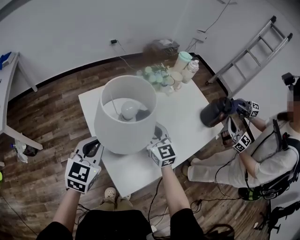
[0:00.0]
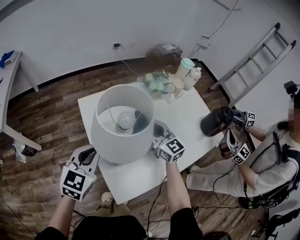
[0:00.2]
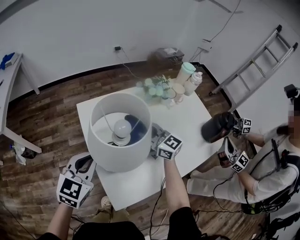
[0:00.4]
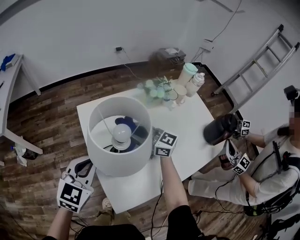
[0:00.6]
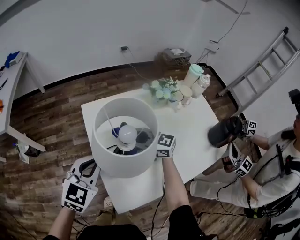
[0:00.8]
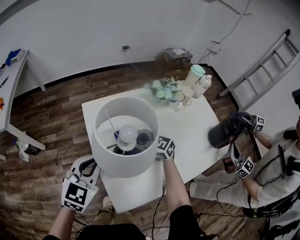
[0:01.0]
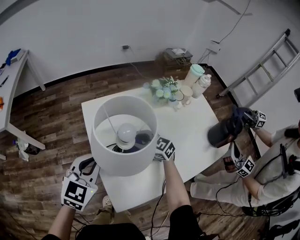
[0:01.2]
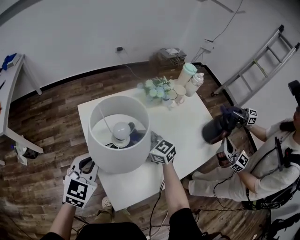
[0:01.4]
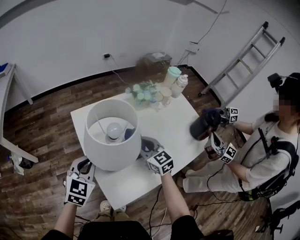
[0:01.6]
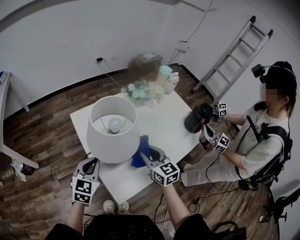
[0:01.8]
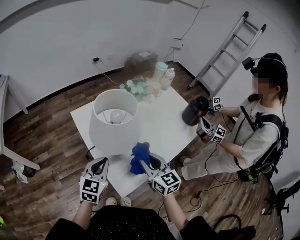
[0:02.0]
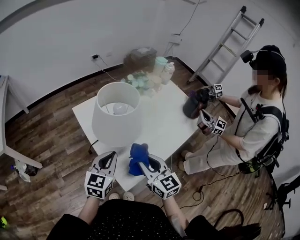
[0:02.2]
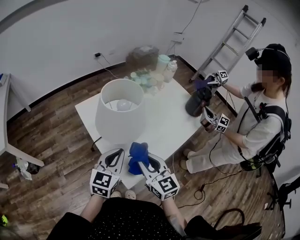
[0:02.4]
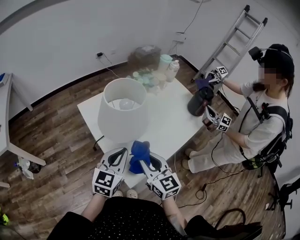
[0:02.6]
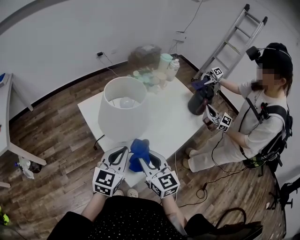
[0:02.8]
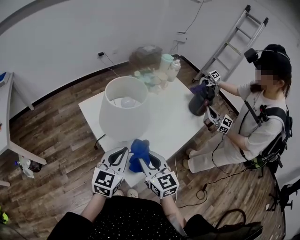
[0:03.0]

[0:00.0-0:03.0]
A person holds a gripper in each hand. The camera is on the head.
0:00.0 to 0:01.6: The right gripper goes downward and returns, about 10 cm each way.
0:01.6 to 0:03.0: The left gripper is displaced backward and to the right by approximately 10 cm, and changes its angle by approximately 20 degrees, while the right gripper heads backward, covering roughly 20 cm, and swivels some 20 degrees.

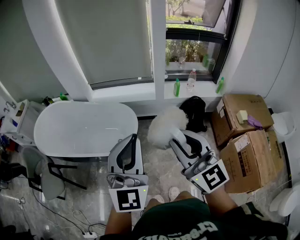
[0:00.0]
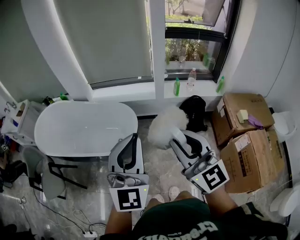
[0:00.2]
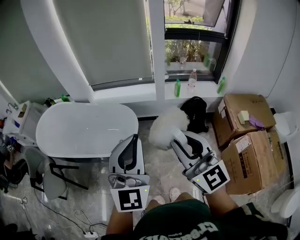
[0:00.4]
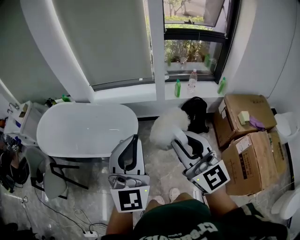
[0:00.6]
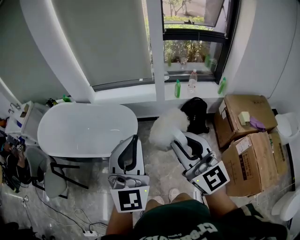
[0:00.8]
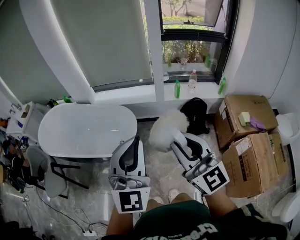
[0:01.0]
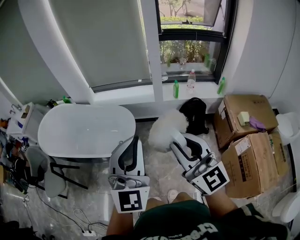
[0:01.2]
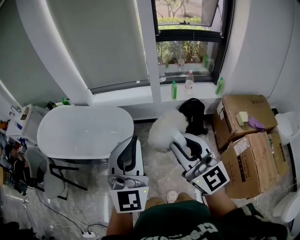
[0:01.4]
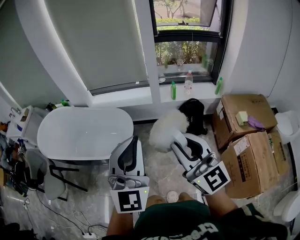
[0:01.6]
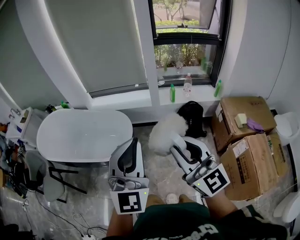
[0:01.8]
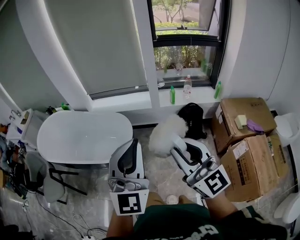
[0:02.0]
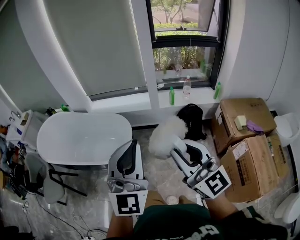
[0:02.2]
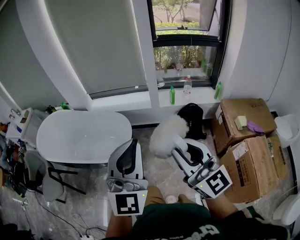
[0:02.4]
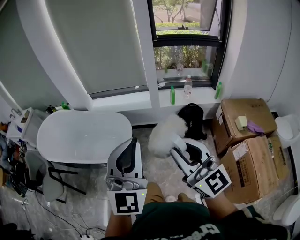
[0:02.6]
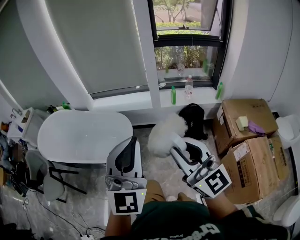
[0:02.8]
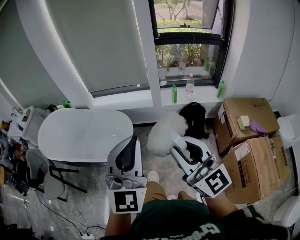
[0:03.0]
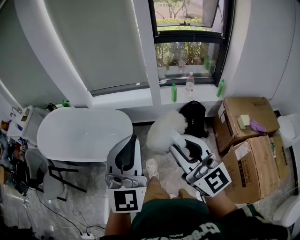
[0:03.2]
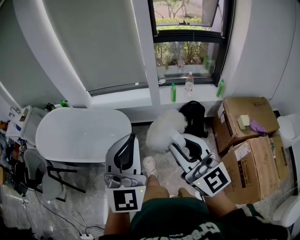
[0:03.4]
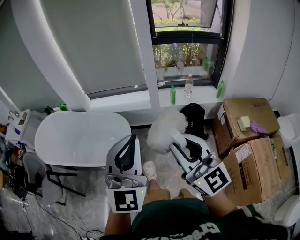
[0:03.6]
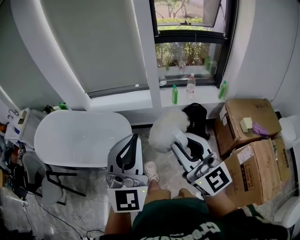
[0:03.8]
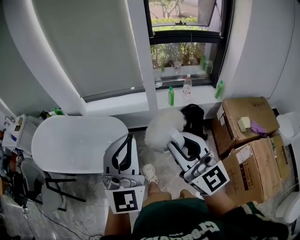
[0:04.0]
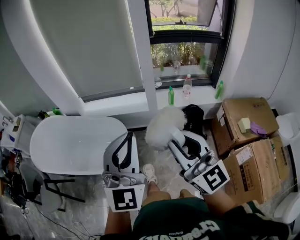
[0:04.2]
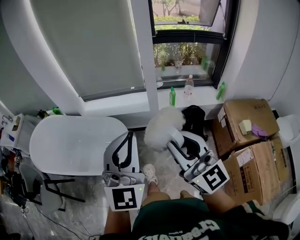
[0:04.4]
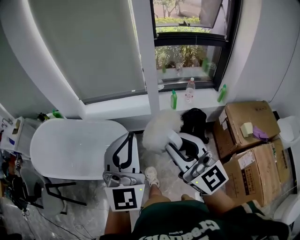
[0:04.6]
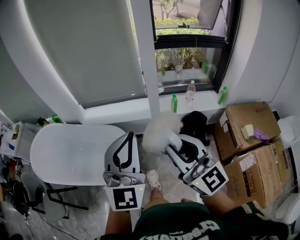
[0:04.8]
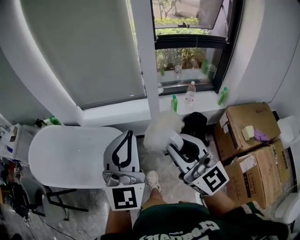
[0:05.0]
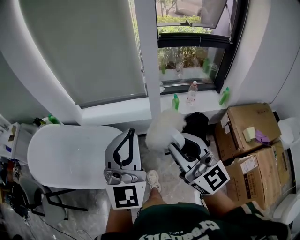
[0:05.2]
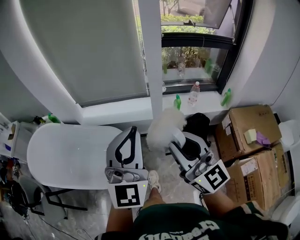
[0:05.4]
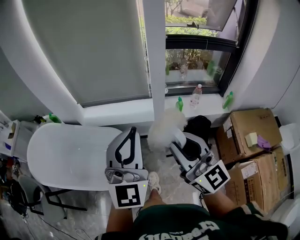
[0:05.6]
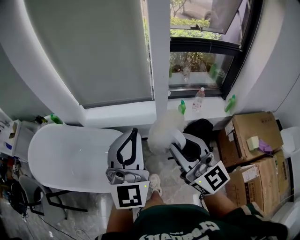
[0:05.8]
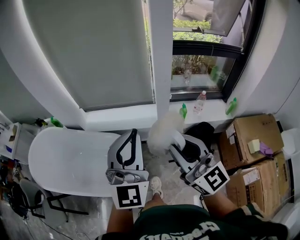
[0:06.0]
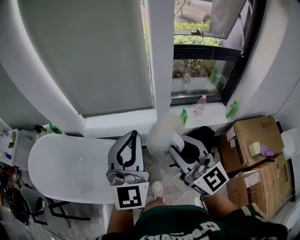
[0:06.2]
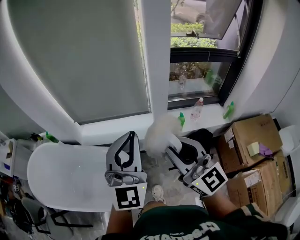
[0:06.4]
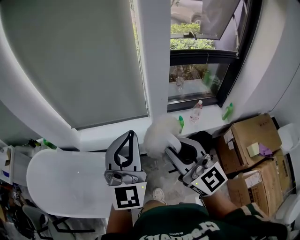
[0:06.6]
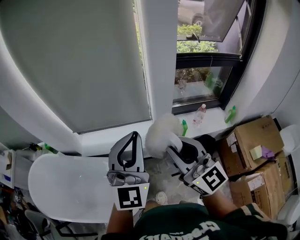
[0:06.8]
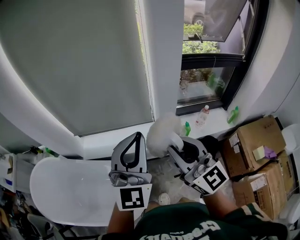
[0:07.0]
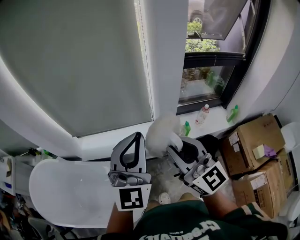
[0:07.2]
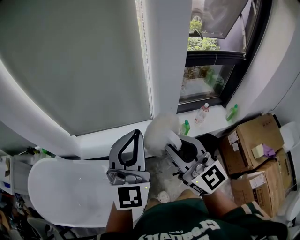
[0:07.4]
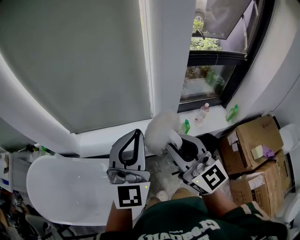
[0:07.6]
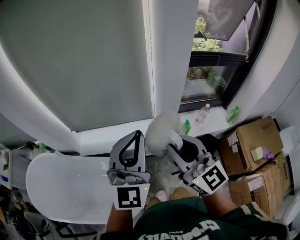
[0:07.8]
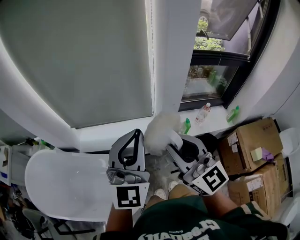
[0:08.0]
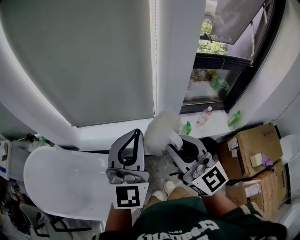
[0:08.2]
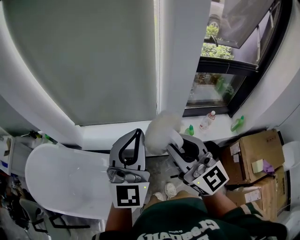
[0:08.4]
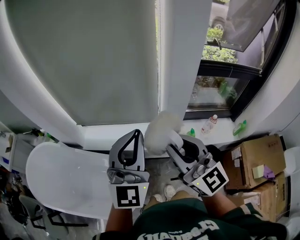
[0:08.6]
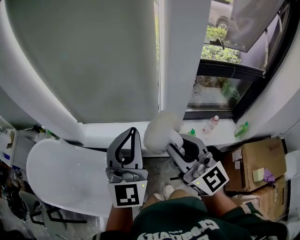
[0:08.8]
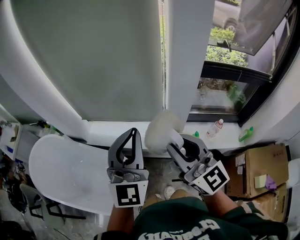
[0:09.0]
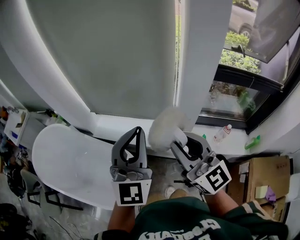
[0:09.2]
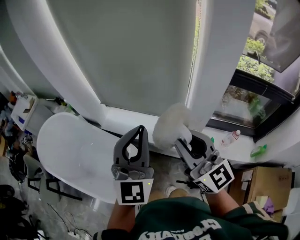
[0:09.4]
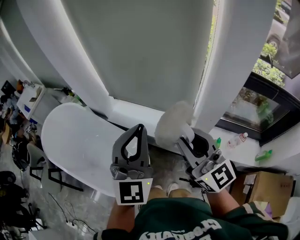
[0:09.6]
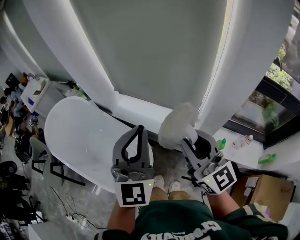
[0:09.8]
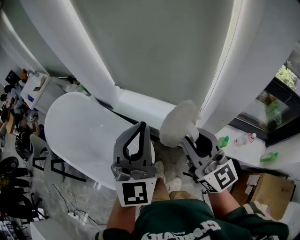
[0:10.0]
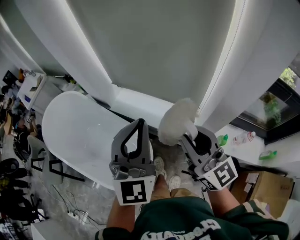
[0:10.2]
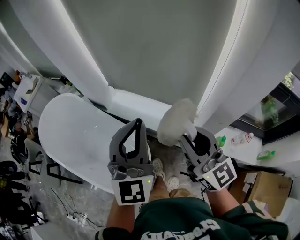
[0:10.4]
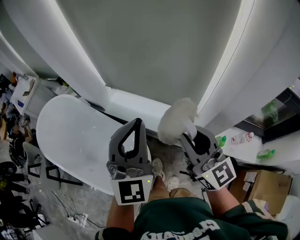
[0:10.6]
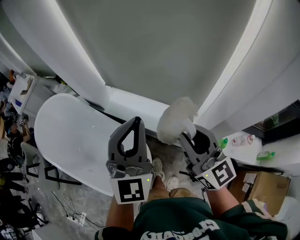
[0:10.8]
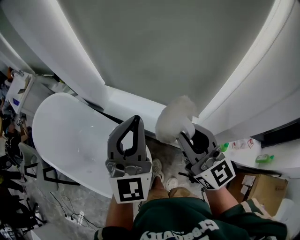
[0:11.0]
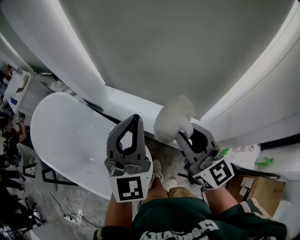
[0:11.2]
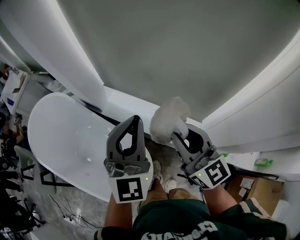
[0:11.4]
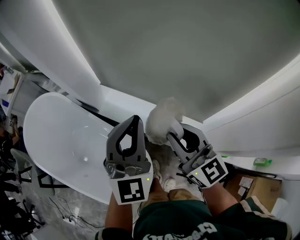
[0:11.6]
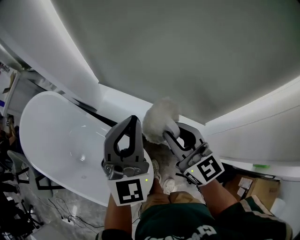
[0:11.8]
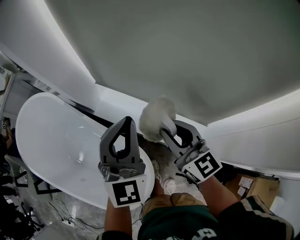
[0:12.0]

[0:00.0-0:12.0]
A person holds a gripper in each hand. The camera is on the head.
0:00.0 to 0:01.6: The two grippers go approximately 10 cm to the right.
0:01.6 to 0:03.0: The grippers move only a little.
0:03.0 to 0:04.4: The two grippers go about 15 cm forward.
0:04.4 to 0:06.0: Both grippers move forward, roughly 20 cm.
0:06.0 to 0:07.6: The two grippers go about 20 cm forward.
0:07.6 to 0:09.0: The right gripper ends up approximately 5 cm from where it was.
0:09.0 to 0:10.4: The left gripper is displaced to the left and forward by roughly 10 cm, while the right gripper shifts about 10 cm forward, downward and to the left.
0:10.4 to 0:12.0: The right gripper shifts about 30 cm forward, downward and to the left, while the left gripper travels forward and downward by some 30 cm.

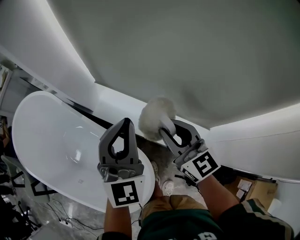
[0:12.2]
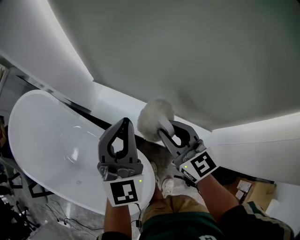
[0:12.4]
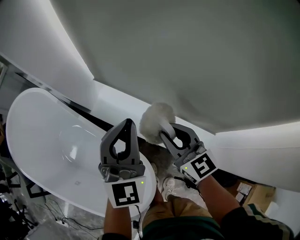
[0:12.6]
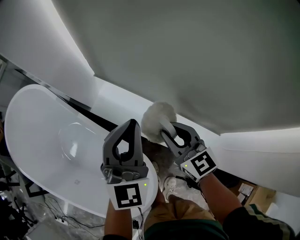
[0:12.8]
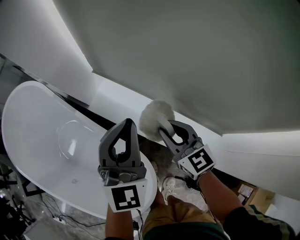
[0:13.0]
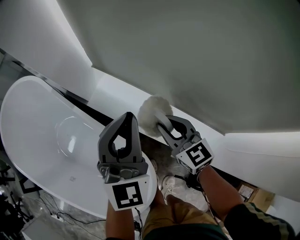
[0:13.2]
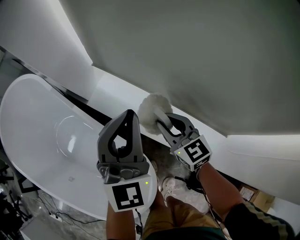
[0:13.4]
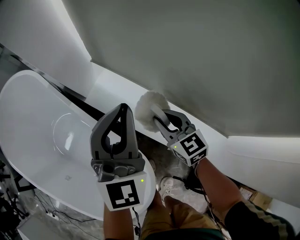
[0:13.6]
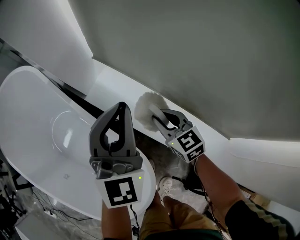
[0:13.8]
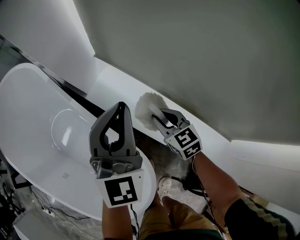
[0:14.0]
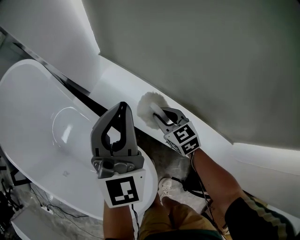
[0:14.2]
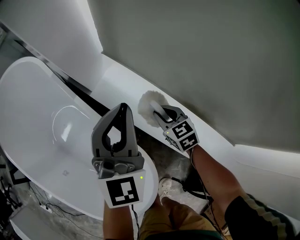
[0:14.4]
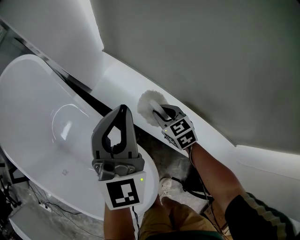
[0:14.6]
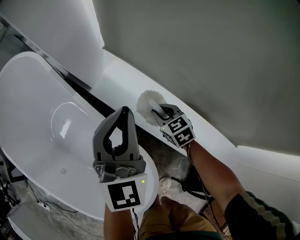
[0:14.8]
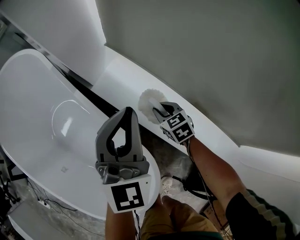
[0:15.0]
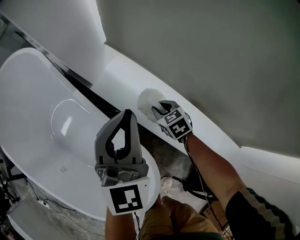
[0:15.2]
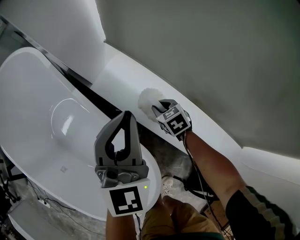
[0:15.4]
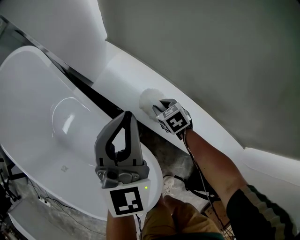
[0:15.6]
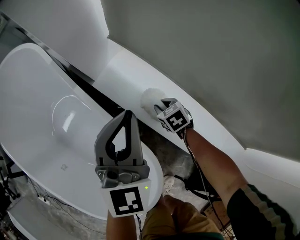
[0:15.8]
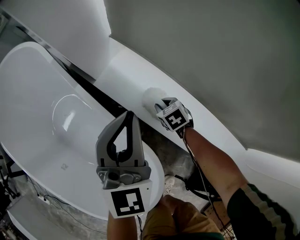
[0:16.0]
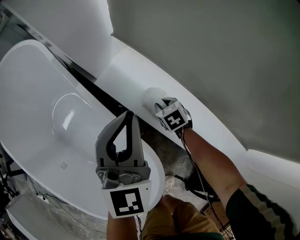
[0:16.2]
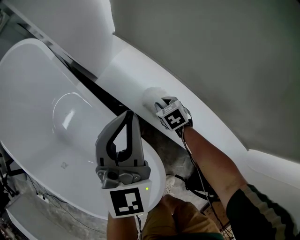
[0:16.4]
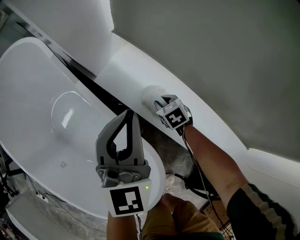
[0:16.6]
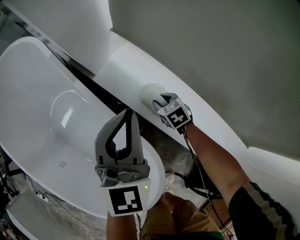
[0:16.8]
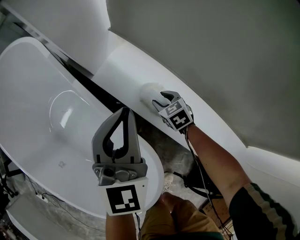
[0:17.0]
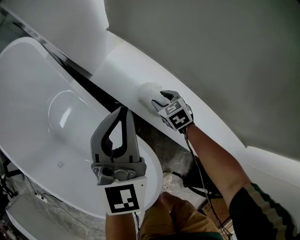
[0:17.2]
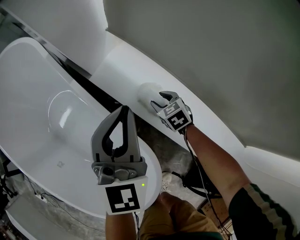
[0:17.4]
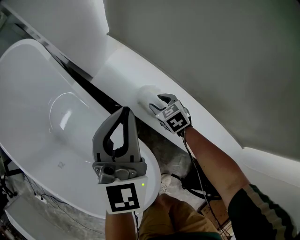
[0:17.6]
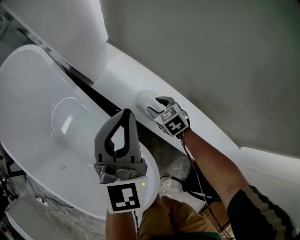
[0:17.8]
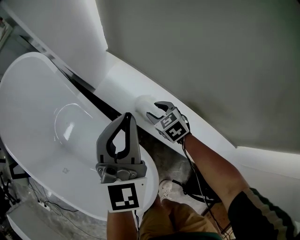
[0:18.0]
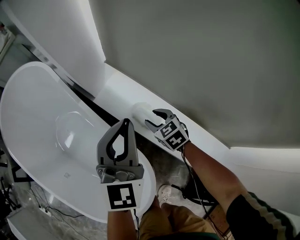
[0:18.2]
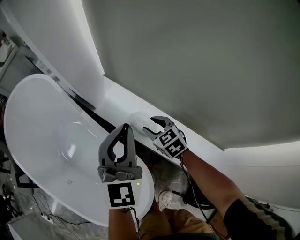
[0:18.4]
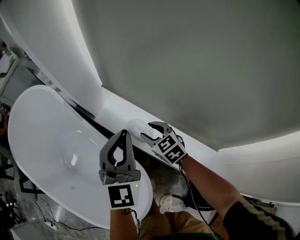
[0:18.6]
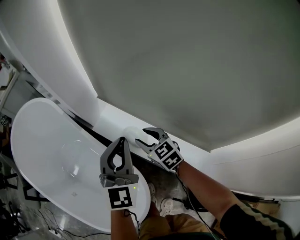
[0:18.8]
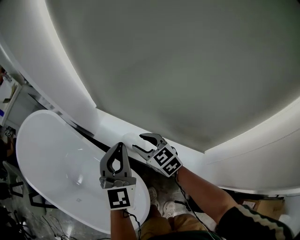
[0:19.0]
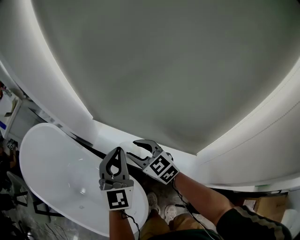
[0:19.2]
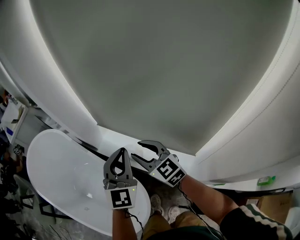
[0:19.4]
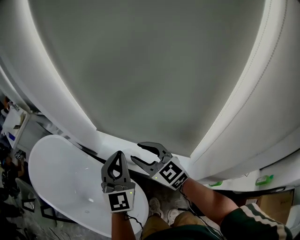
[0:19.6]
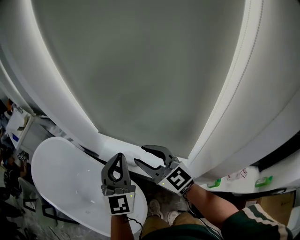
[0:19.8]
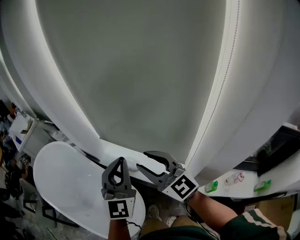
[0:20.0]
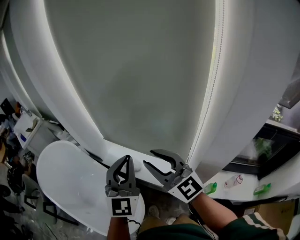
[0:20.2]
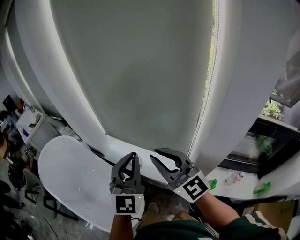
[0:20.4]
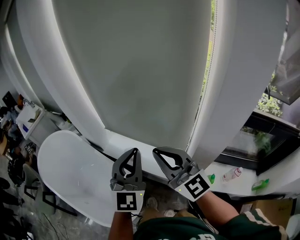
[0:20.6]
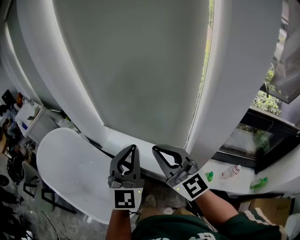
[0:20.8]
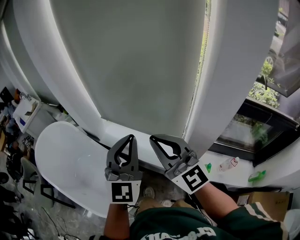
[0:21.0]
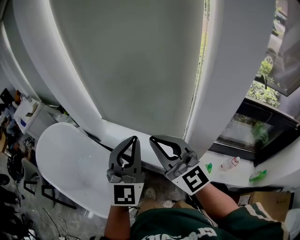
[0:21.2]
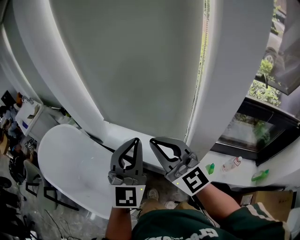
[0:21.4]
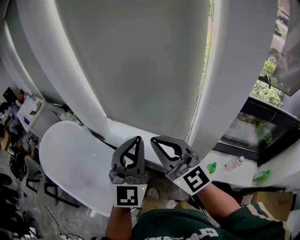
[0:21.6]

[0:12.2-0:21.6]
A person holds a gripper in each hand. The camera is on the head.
0:12.2 to 0:13.8: The right gripper is displaced downward by roughly 25 cm, and changes its angle by some 30 degrees. Meanwhile the left gripper goes about 15 cm downward and forward.
0:13.8 to 0:15.4: The right gripper is displaced downward by roughly 15 cm, and swivels some 20 degrees. The left gripper heads downward, covering roughly 5 cm.
0:15.4 to 0:17.0: The right gripper opens.
0:17.0 to 0:18.4: The left gripper moves upward, about 10 cm; the right gripper travels upward by about 20 cm.
0:18.4 to 0:20.0: The left gripper heads upward and backward, covering approximately 35 cm; the right gripper moves upward and backward, approximately 50 cm, and tips its fingers upward by about 50 degrees.
0:20.0 to 0:21.6: The left gripper is displaced backward by roughly 10 cm. Meanwhile the right gripper heads backward and upward, covering about 10 cm, and closes up.
